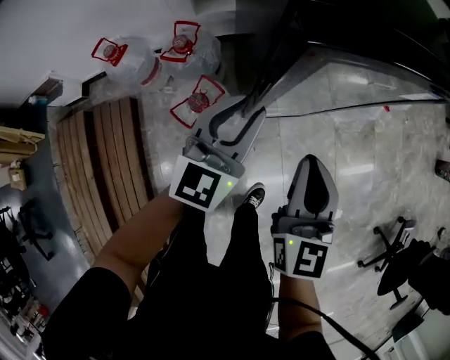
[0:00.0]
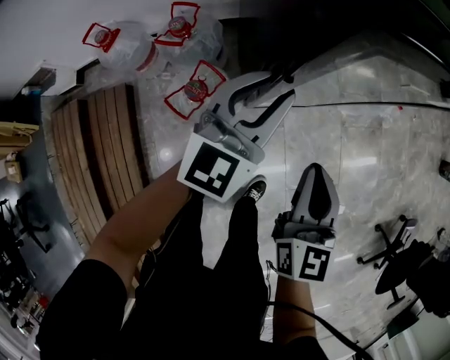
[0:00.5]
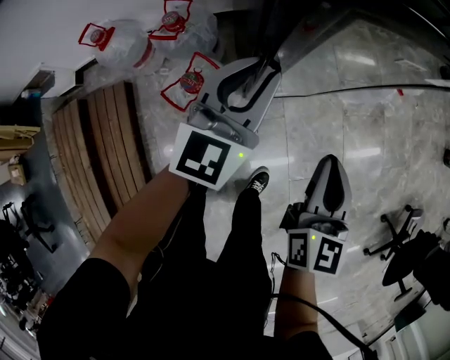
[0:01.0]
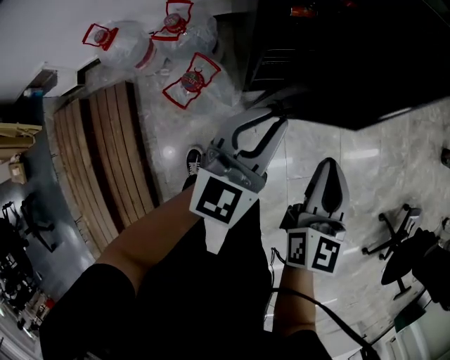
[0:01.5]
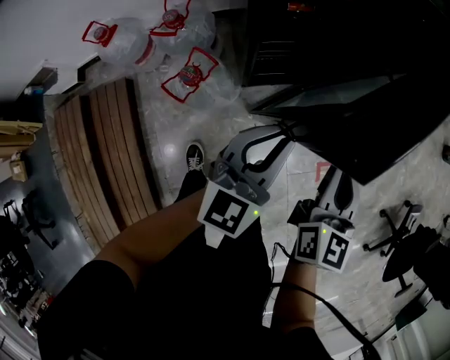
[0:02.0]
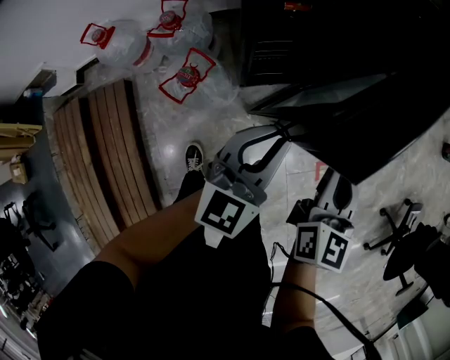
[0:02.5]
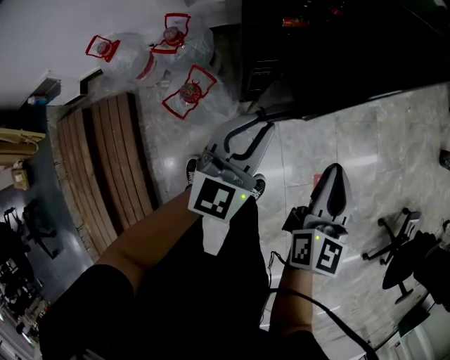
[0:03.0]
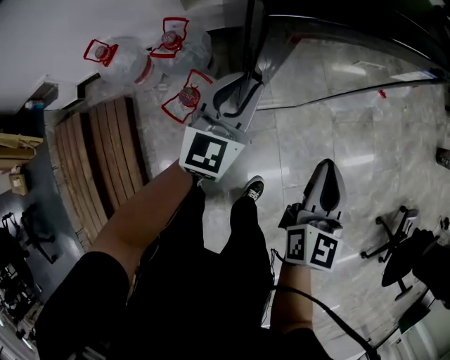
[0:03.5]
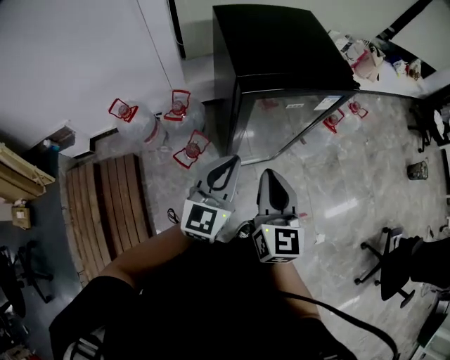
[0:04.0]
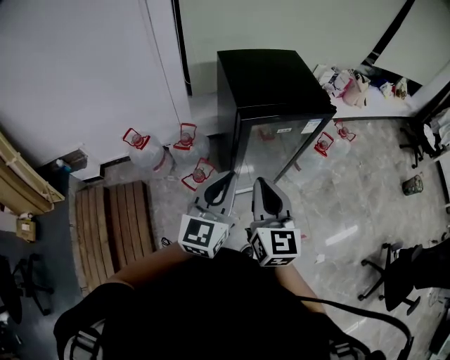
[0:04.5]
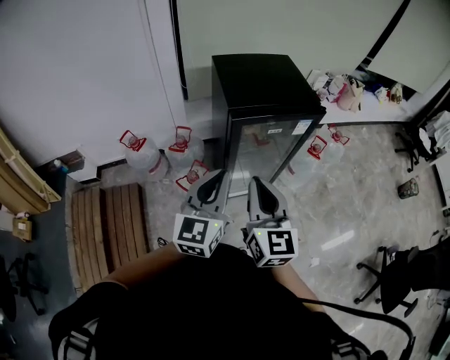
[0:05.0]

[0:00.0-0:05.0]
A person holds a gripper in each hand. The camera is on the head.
0:00.0 to 0:02.5: The right gripper shifts roughly 10 cm to the right. Meanwhile the left gripper heads to the right and backward, covering about 15 cm.
0:02.5 to 0:05.0: The right gripper moves upward, backward and to the left, roughly 35 cm, and rotates about 30 degrees. The left gripper travels upward by roughly 30 cm.

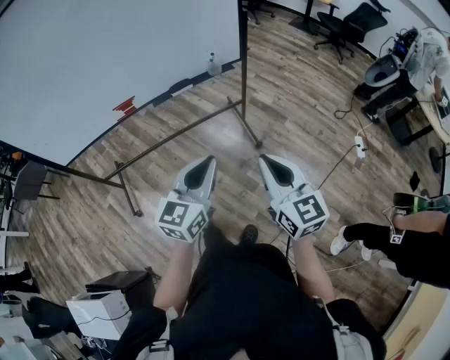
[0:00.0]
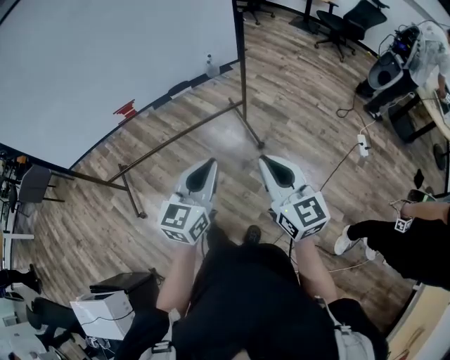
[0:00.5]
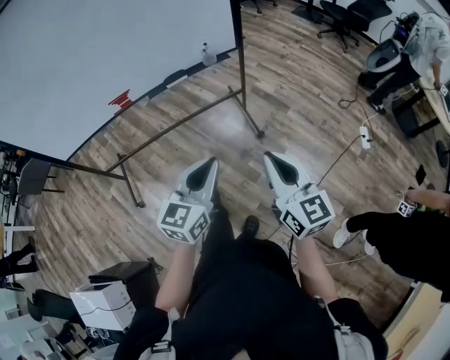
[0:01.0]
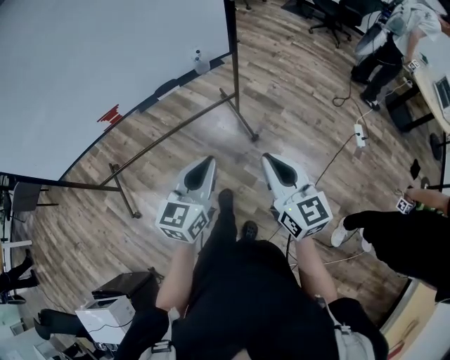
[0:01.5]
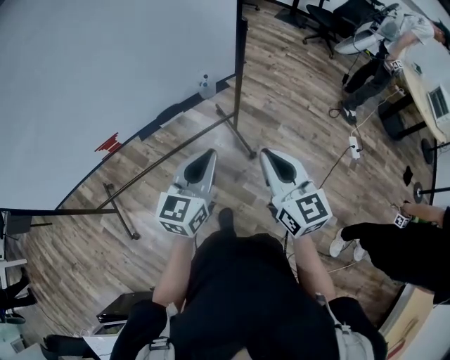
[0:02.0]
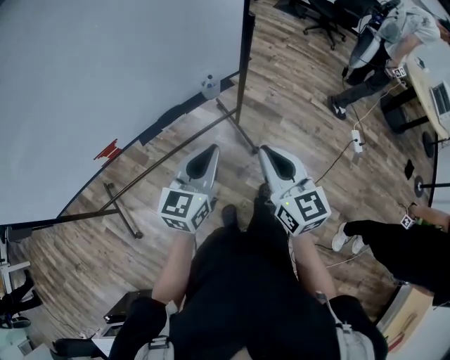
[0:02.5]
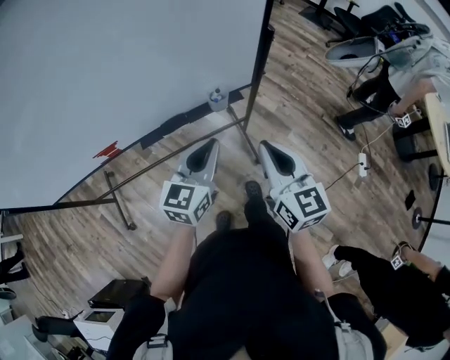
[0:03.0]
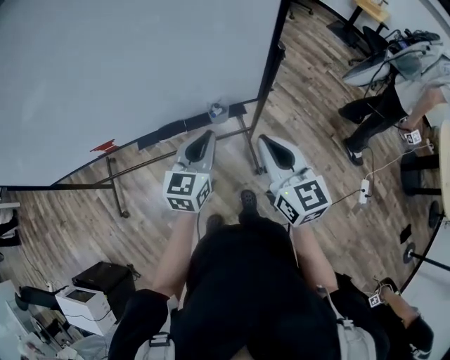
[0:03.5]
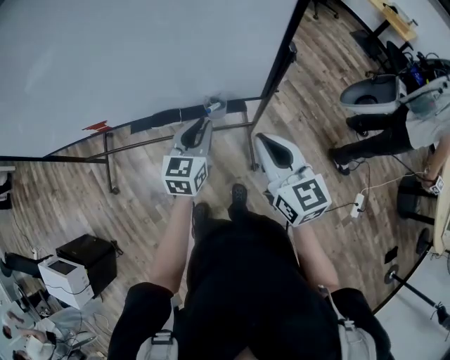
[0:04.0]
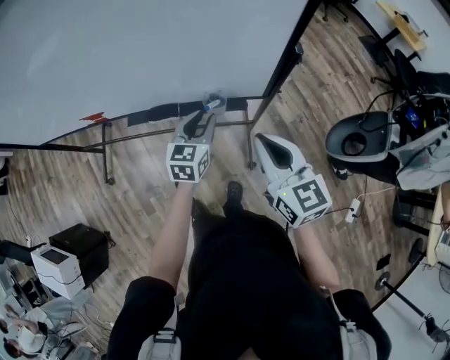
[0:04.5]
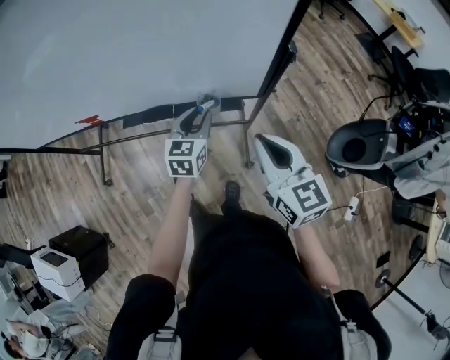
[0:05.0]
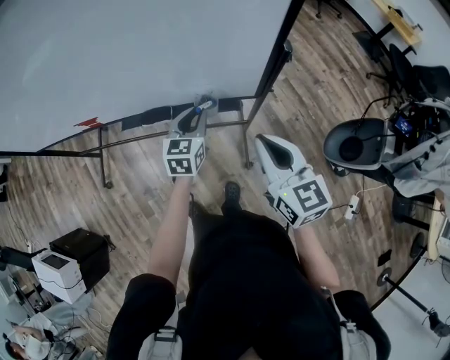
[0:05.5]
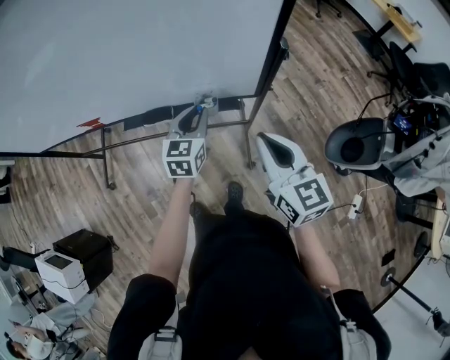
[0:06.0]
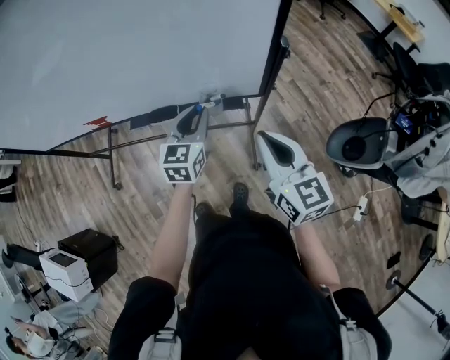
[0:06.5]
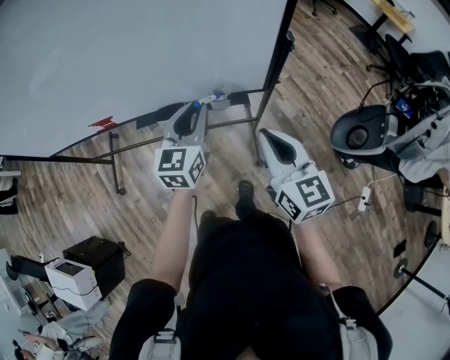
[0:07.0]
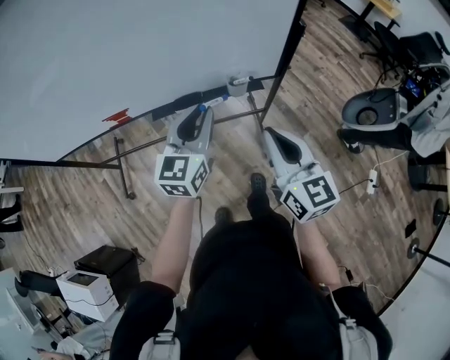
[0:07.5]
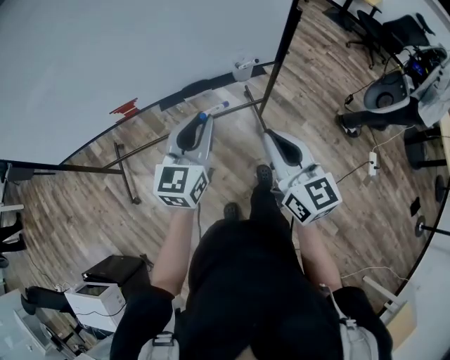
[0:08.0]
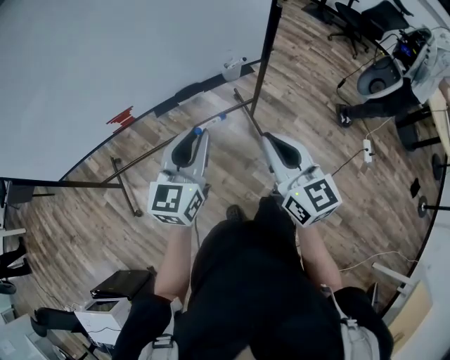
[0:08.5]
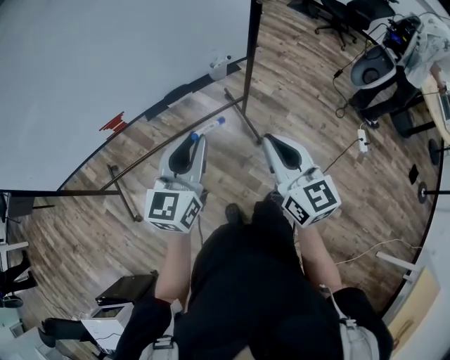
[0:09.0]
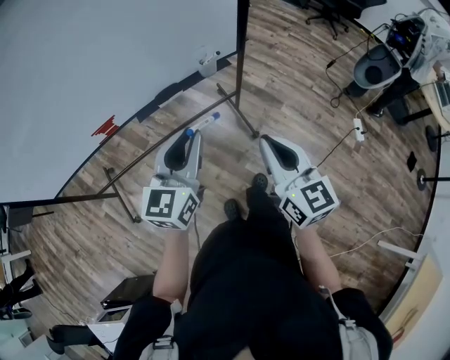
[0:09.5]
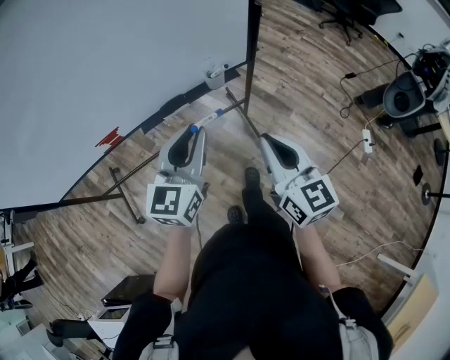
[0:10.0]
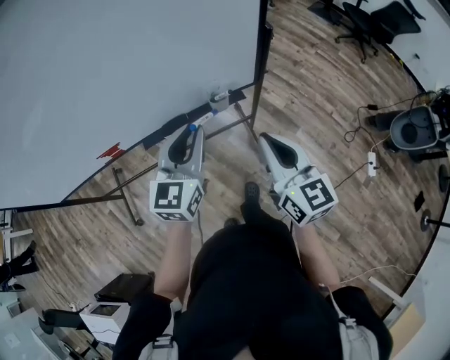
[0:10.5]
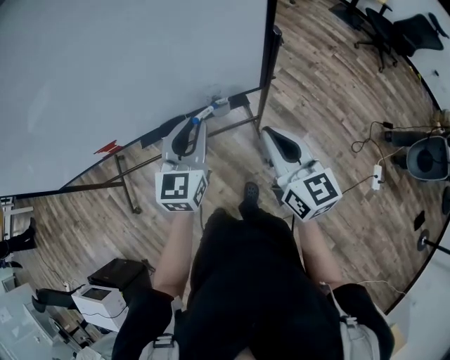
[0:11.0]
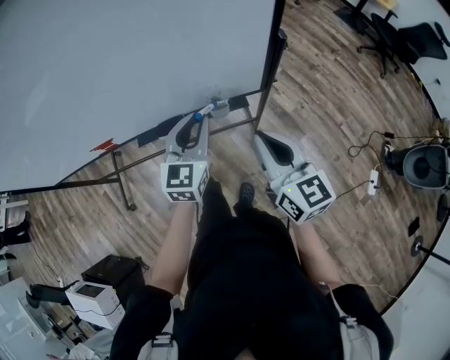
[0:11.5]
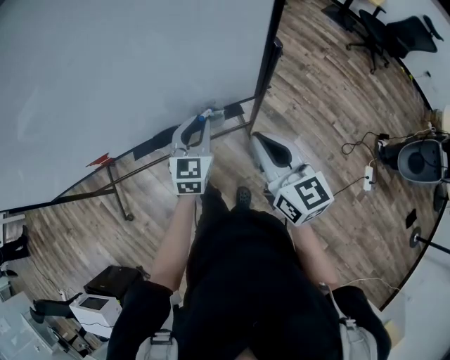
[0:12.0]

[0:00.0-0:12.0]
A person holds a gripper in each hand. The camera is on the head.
0:00.0 to 0:02.0: Both grippers travel together forward, roughly 20 cm.
0:02.0 to 0:04.0: The left gripper changes place by approximately 30 cm, and changes its angle by some 30 degrees. The right gripper shifts by roughly 30 cm, and turns by approximately 30 degrees.
0:04.0 to 0:06.0: The left gripper moves approximately 5 cm.
0:06.0 to 0:08.0: The left gripper moves backward, to the left and upward, some 30 cm, and changes its angle by approximately 20 degrees, while the right gripper heads to the left and backward, covering approximately 25 cm.
0:08.0 to 0:10.0: The left gripper moves some 10 cm backward and comes back; the right gripper reaches about 5 cm backward, then returns.
0:10.0 to 0:12.0: The left gripper moves forward and downward, roughly 25 cm, and swivels roughly 20 degrees. Meanwhile the right gripper travels forward by approximately 20 cm.

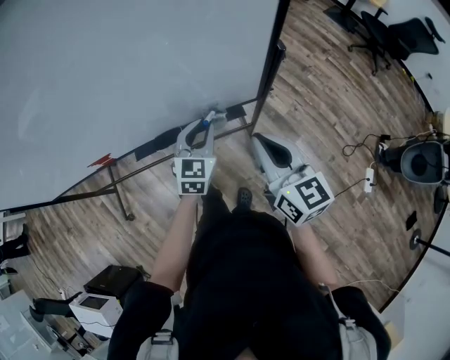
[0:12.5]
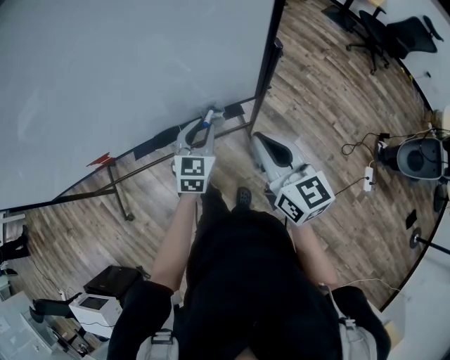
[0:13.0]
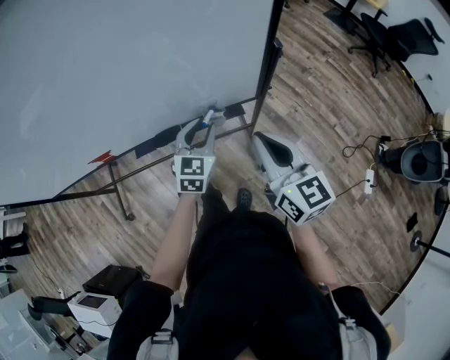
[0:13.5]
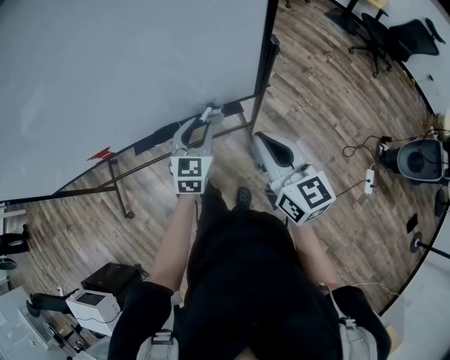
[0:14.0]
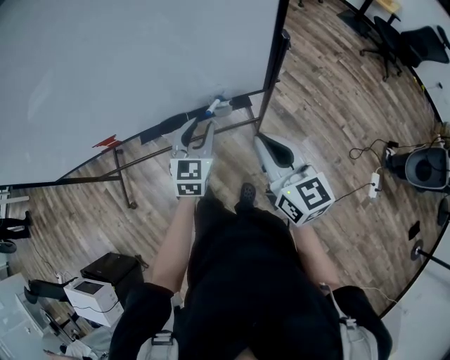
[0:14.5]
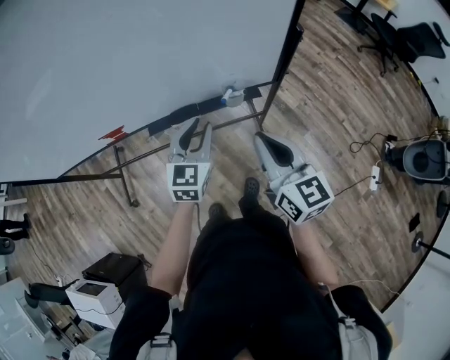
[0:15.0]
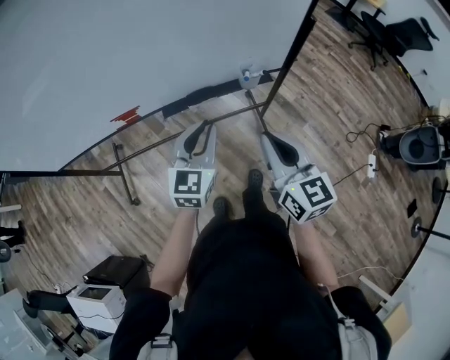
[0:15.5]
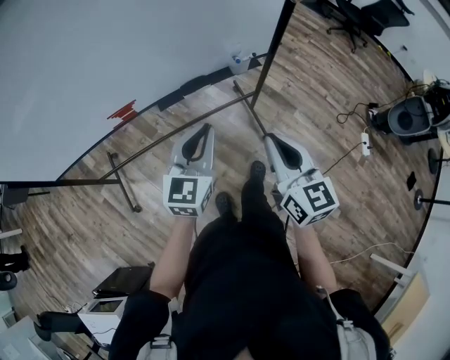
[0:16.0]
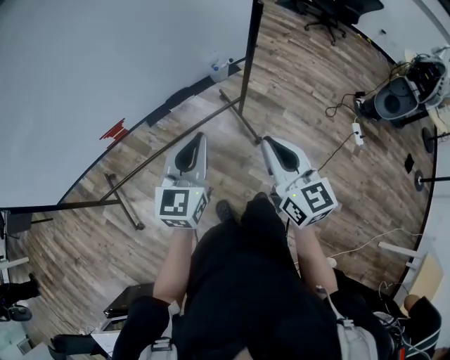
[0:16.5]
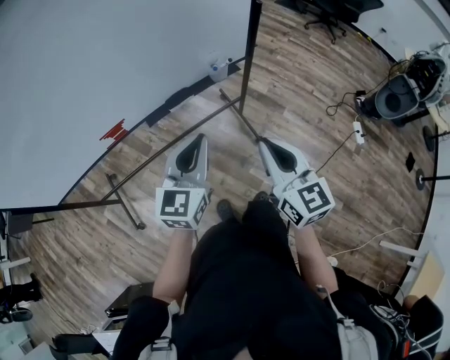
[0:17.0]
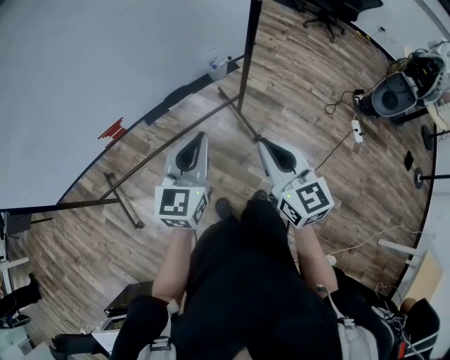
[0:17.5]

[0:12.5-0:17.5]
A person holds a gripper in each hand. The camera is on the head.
0:12.5 to 0:15.0: The grippers both shift backward and to the left by some 10 cm.
0:15.0 to 0:17.5: The left gripper heads backward and upward, covering about 20 cm, rotates roughly 20 degrees, and closes its fingers, while the right gripper moves backward, about 20 cm, and rotates approximately 20 degrees.

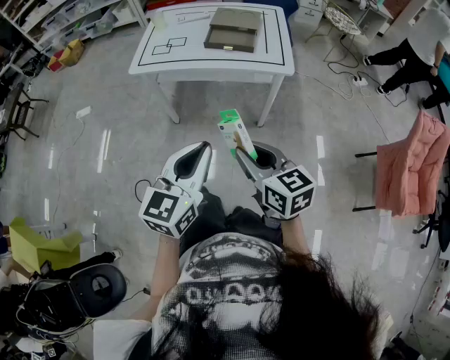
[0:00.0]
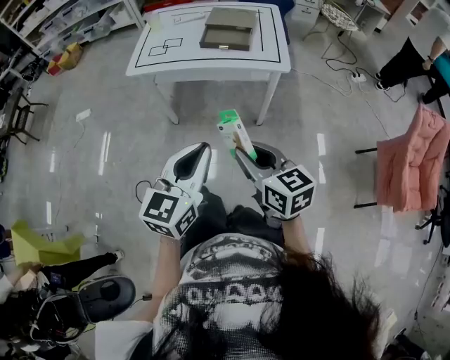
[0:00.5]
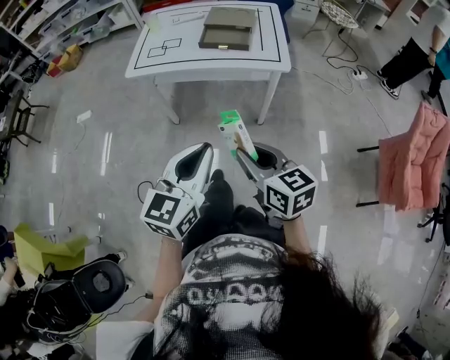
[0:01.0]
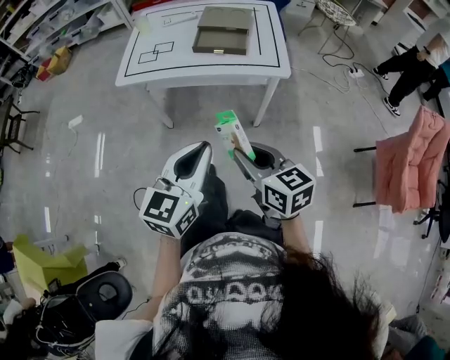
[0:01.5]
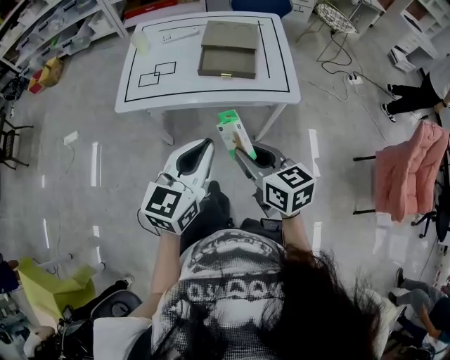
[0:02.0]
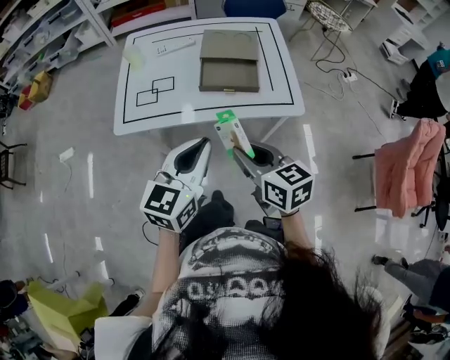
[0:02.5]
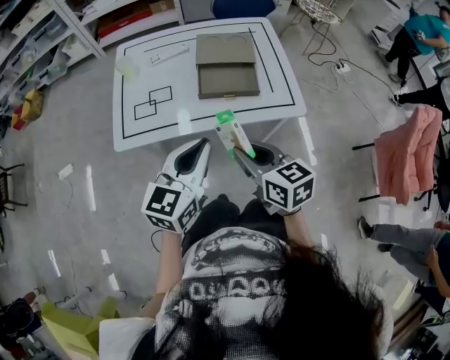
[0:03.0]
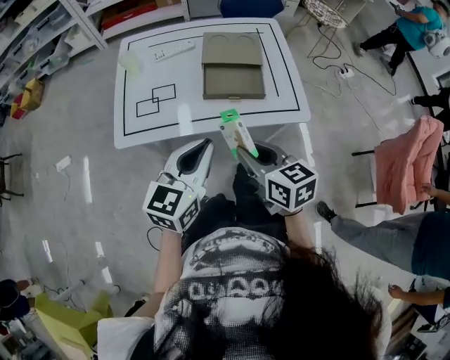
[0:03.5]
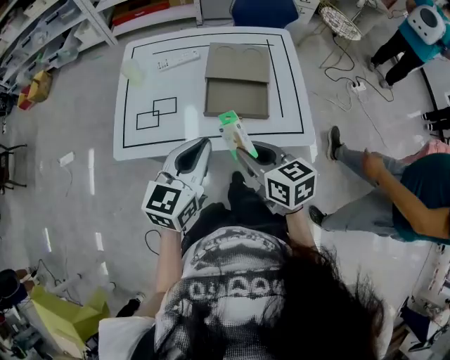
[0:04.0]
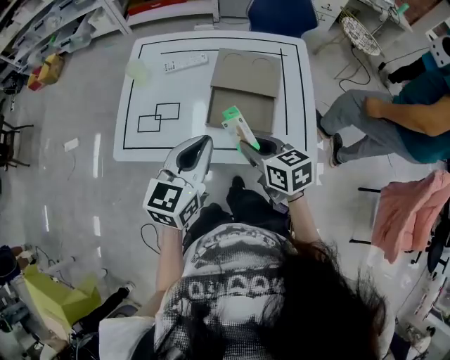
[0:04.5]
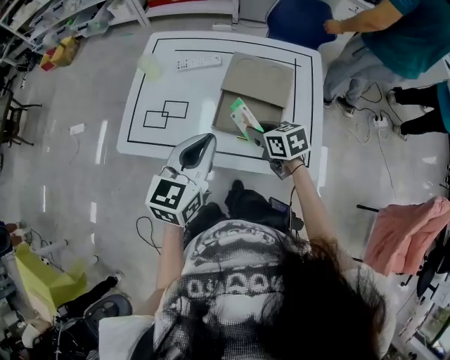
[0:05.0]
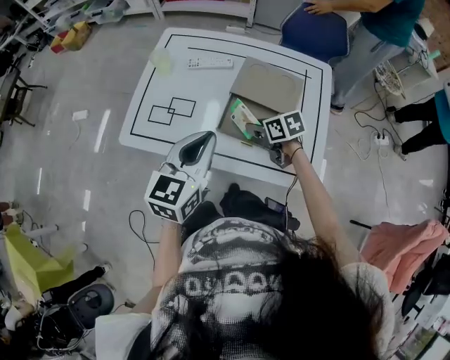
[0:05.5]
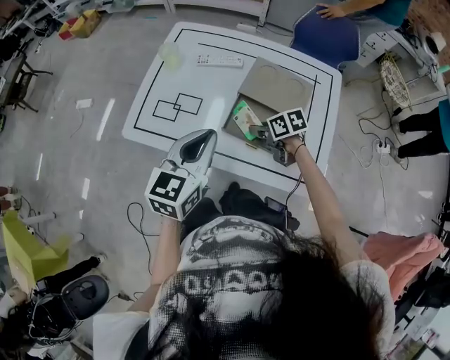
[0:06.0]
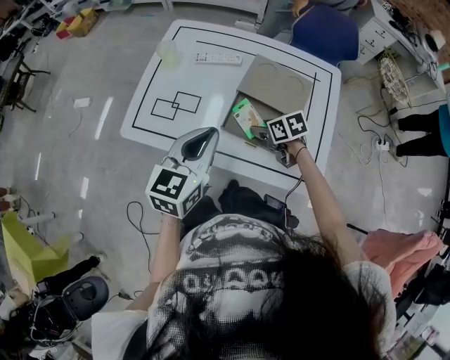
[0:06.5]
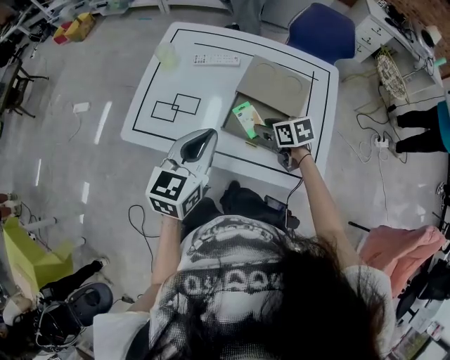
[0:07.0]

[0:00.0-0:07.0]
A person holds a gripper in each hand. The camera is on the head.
0:00.0 to 0:02.0: Both grippers move forward, some 20 cm.
0:02.0 to 0:03.5: The right gripper travels forward by approximately 15 cm; the left gripper shifts roughly 15 cm forward and to the left.
0:03.5 to 0:05.0: The left gripper shifts about 15 cm forward and to the right. Meanwhile the right gripper moves forward and downward, about 25 cm, and turns by roughly 30 degrees.
0:05.0 to 0:07.0: The right gripper changes place by about 5 cm, and opens up.
